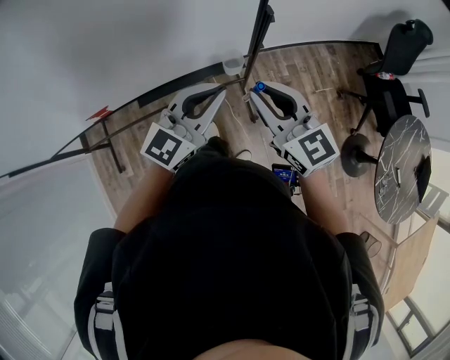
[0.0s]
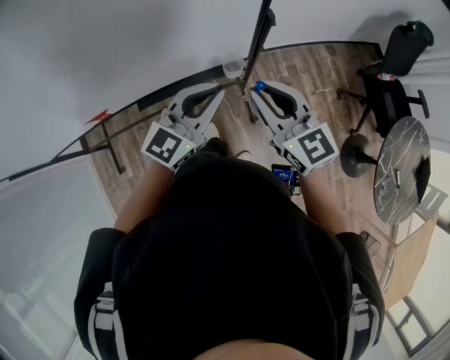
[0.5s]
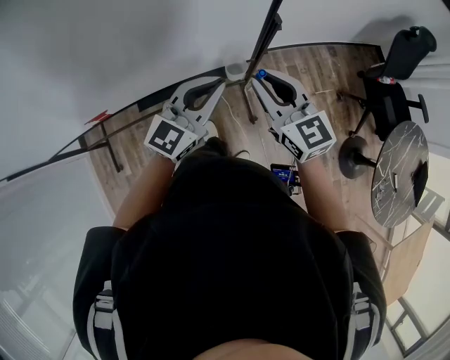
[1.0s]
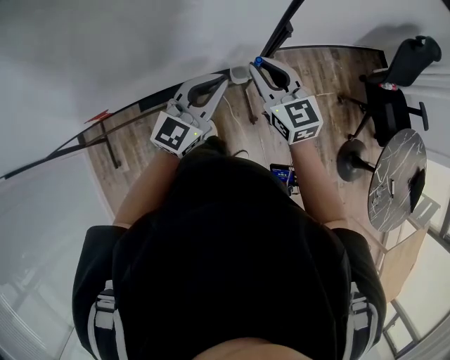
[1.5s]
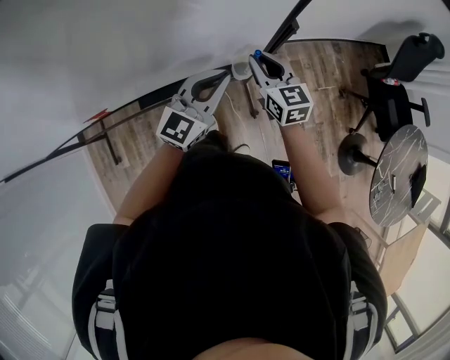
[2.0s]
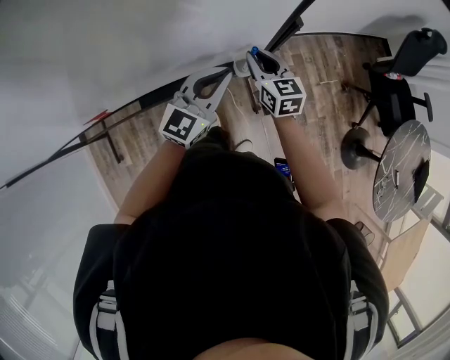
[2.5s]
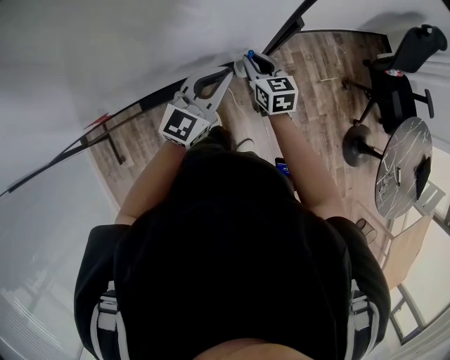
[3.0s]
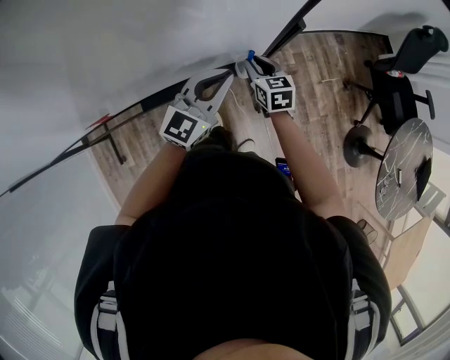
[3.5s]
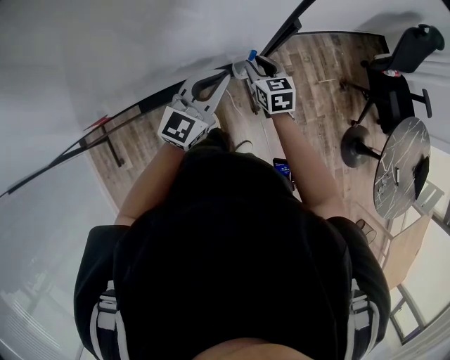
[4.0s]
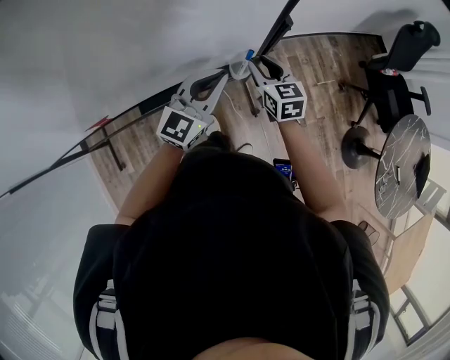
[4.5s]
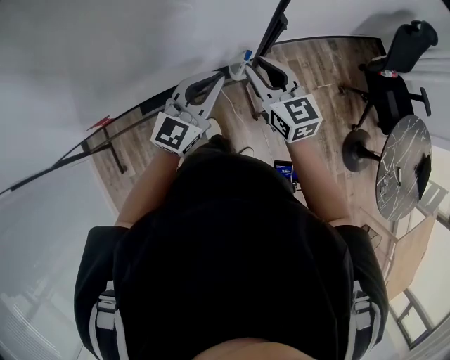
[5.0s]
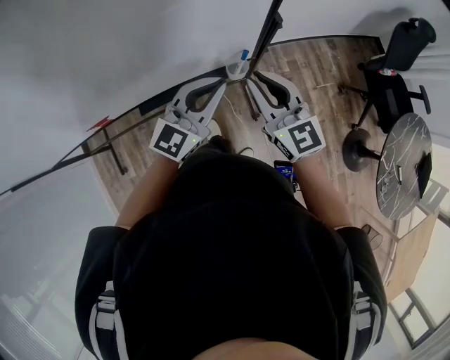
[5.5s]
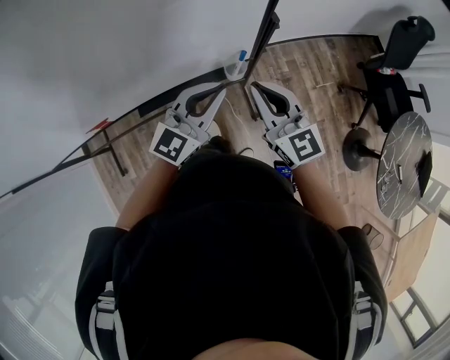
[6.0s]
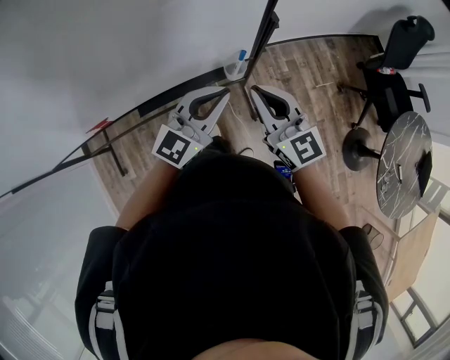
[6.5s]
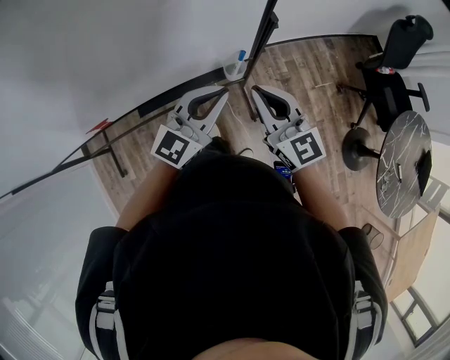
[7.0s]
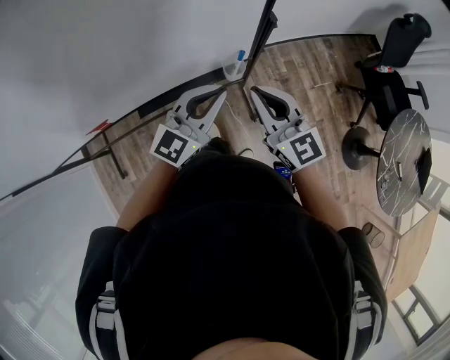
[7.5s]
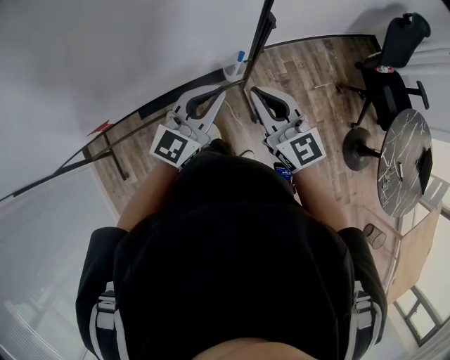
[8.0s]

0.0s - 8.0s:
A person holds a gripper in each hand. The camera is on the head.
0.0s - 2.0s: The right gripper moves forward and downward, approximately 20 cm. The left gripper goes about 10 cm forward and downward.
2.0s - 4.0s: The right gripper travels downward by some 10 cm.
4.0s - 6.0s: The right gripper goes about 25 cm upward and backward, swivels some 30 degrees, and closes its fingers, while the left gripper goes roughly 10 cm upward and backward.
6.0s - 8.0s: There are only small adjustments of the grippers.

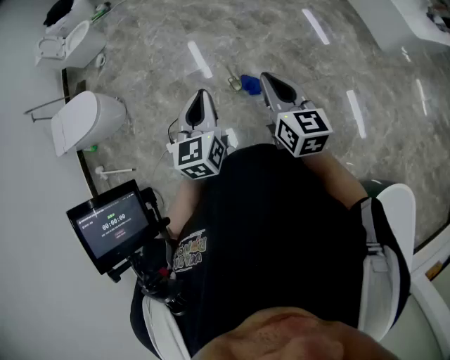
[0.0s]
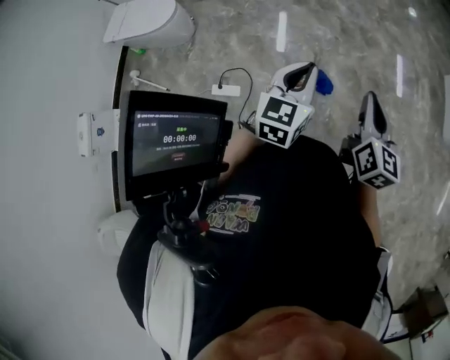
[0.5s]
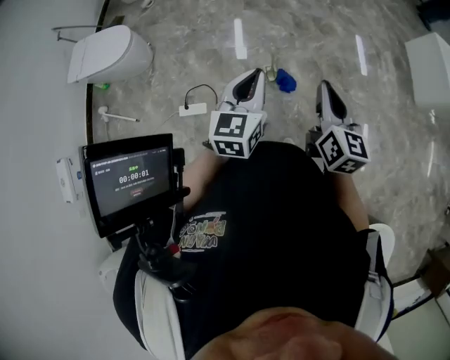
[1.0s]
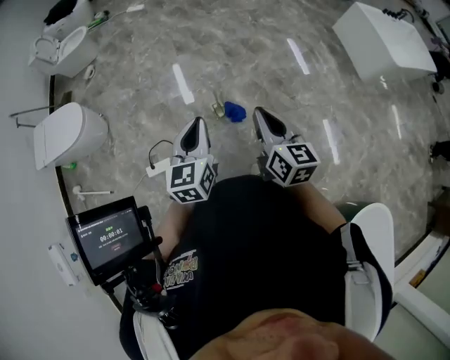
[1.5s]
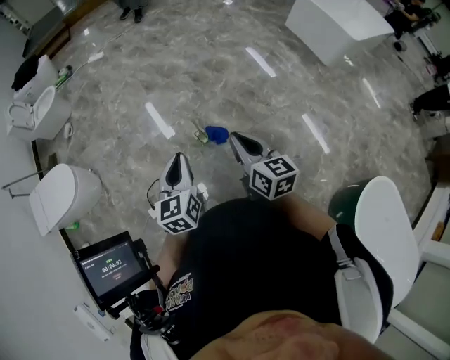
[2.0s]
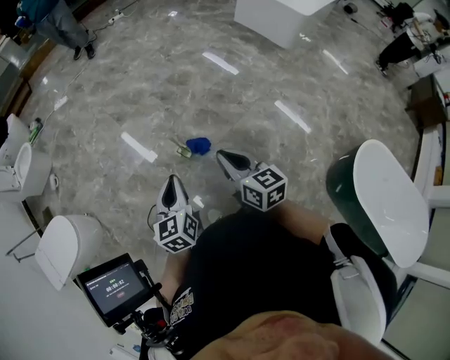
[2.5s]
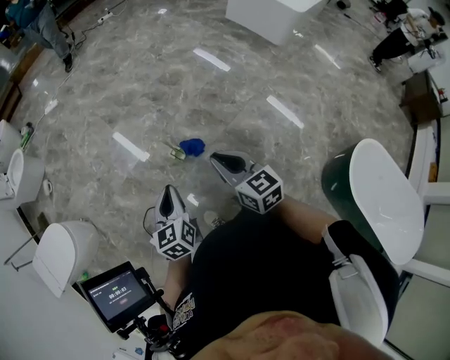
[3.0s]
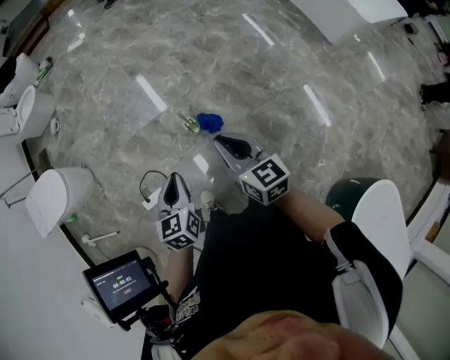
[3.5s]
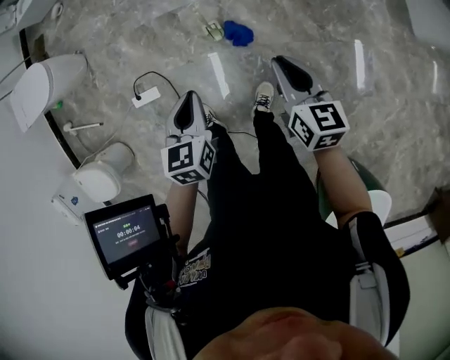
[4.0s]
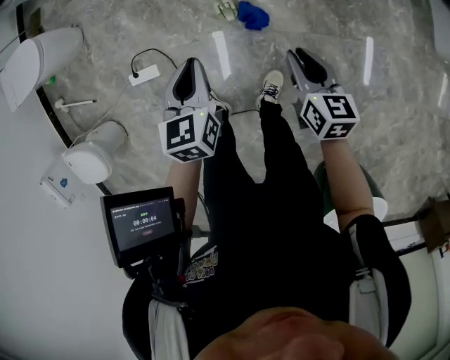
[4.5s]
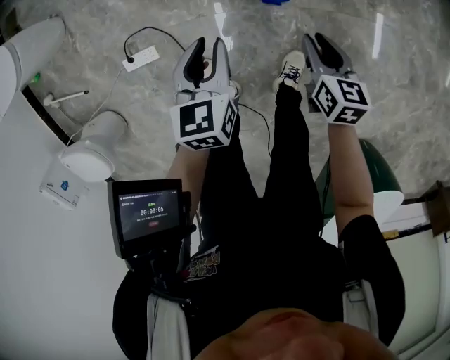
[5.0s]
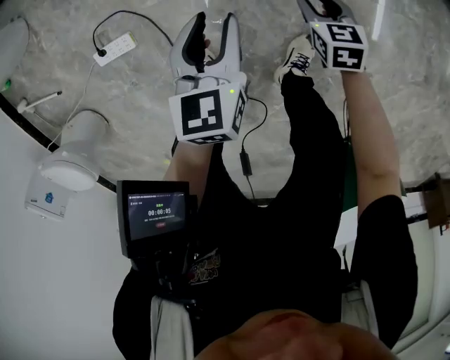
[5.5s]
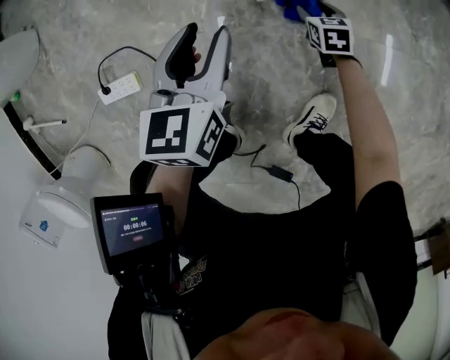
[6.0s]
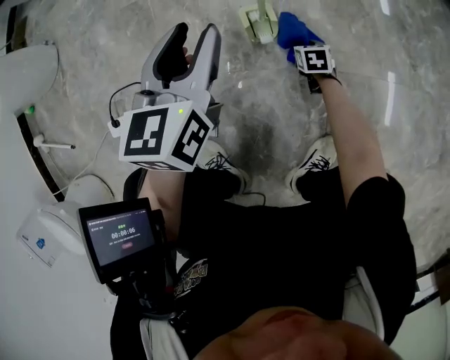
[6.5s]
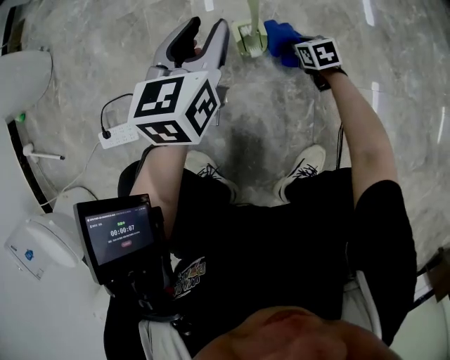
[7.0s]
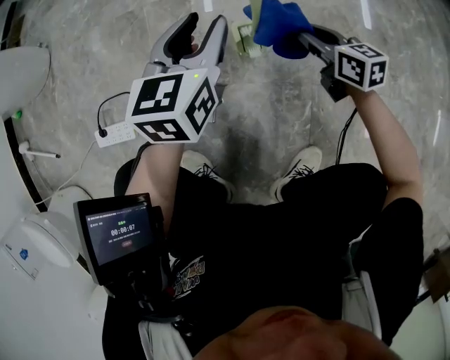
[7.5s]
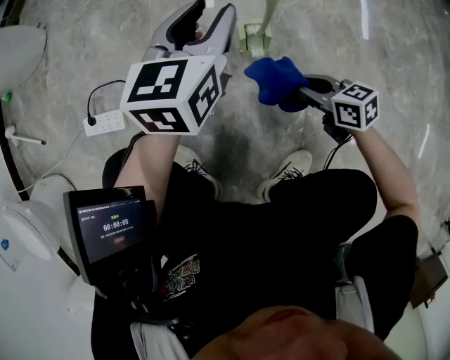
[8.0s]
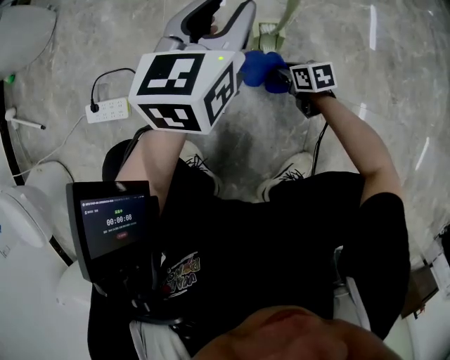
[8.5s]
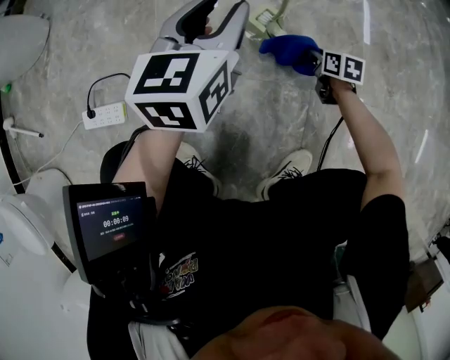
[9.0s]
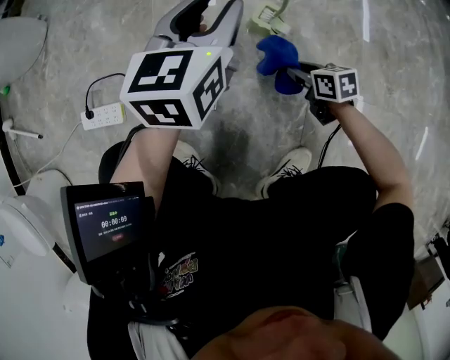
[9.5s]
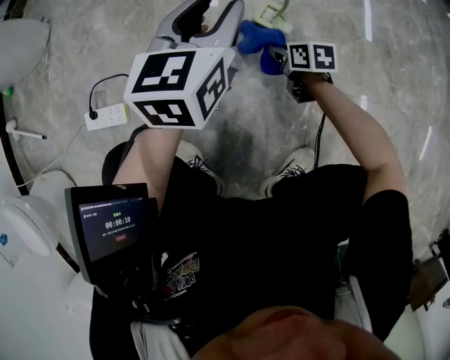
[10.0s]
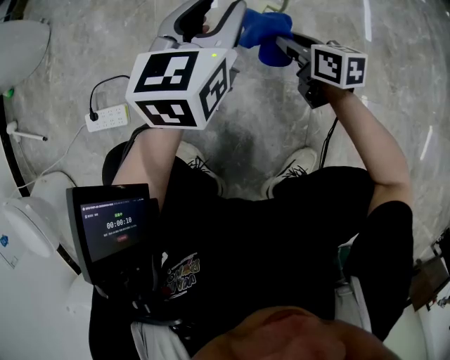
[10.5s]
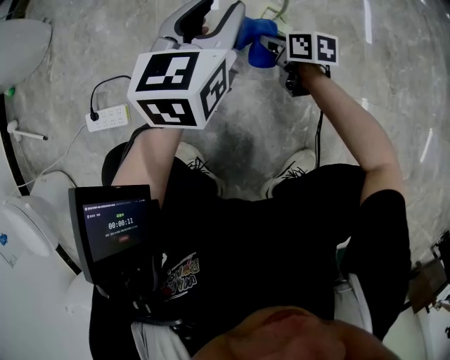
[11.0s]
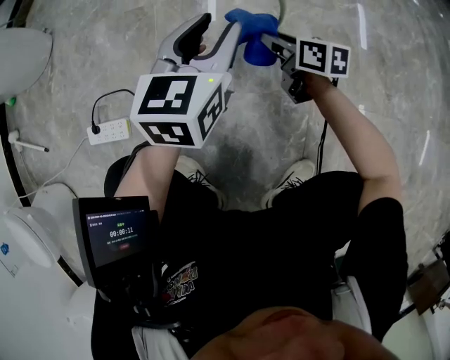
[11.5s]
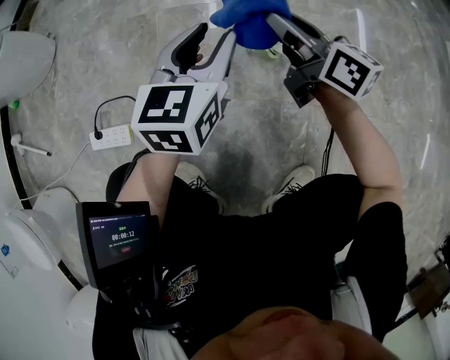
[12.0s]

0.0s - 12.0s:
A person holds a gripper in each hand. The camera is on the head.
0.0s - 2.0s: The left gripper ends up approximately 5 cm from where it was.
2.0s - 4.0s: The left gripper turns by about 20 degrees, while the right gripper shifts by roughly 5 cm, and changes its angle by roughly 20 degrees.
4.0s - 6.0s: The left gripper heads downward, covering roughly 50 cm, and opens. The right gripper goes roughly 80 cm downward, swivels about 30 degrees, and opens.
6.0s - 8.0s: The right gripper heads upward, covering about 15 cm, swivels some 40 degrees, and closes up. The left gripper moves roughly 10 cm.
8.0s - 10.0s: The right gripper heads downward and forward, covering some 15 cm, and turns by roughly 20 degrees.
10.0s - 12.0s: The right gripper moves up and down over some 25 cm, changing direction 2 times, and angles its fingers upward, by about 40 degrees.

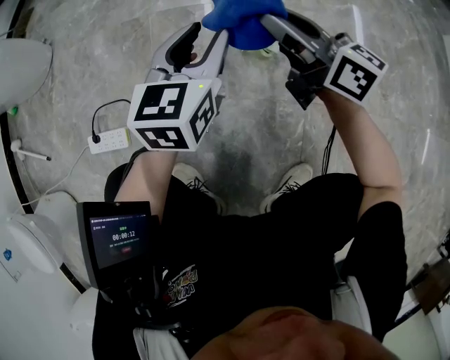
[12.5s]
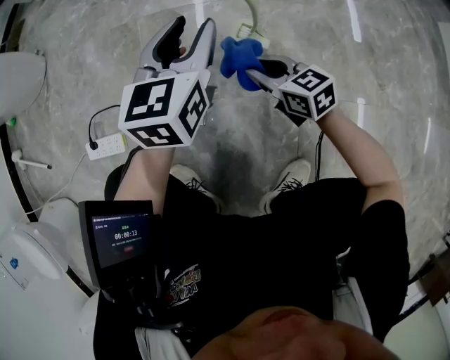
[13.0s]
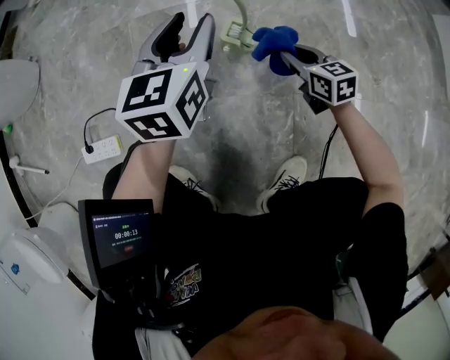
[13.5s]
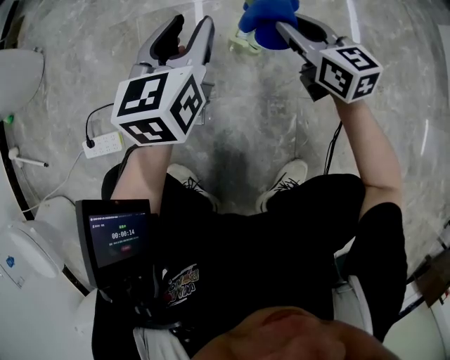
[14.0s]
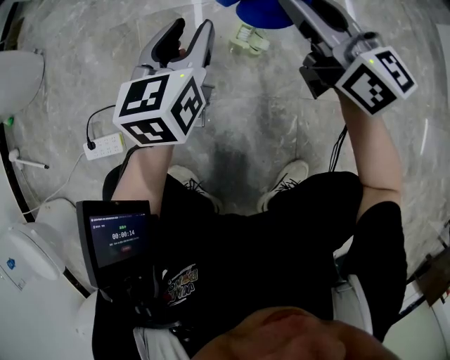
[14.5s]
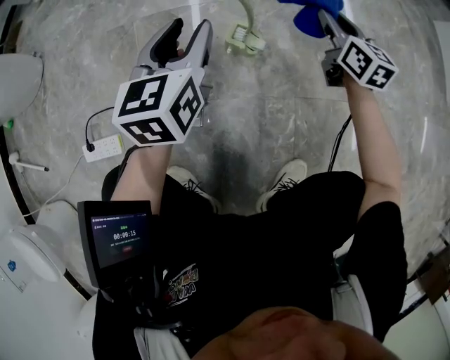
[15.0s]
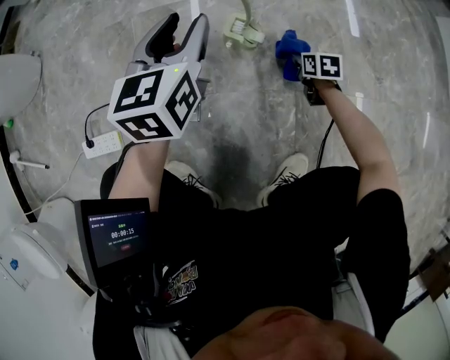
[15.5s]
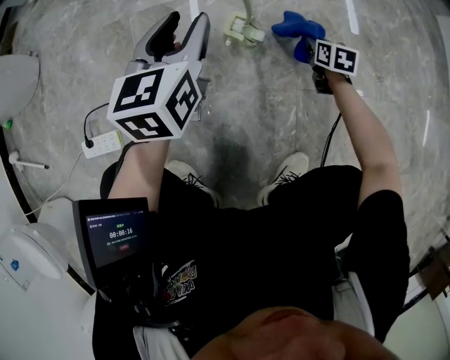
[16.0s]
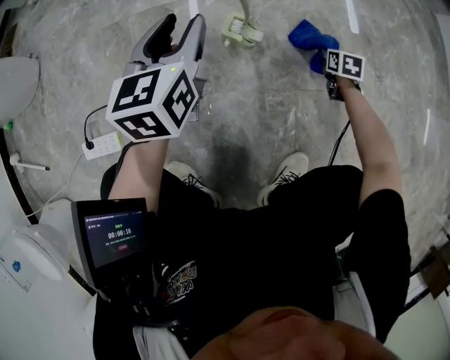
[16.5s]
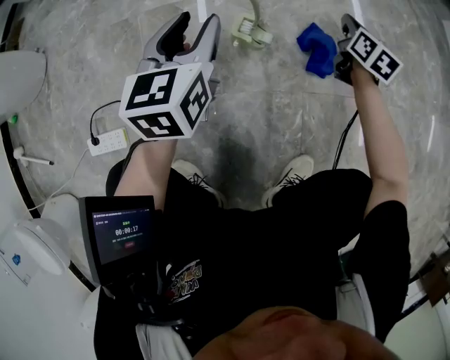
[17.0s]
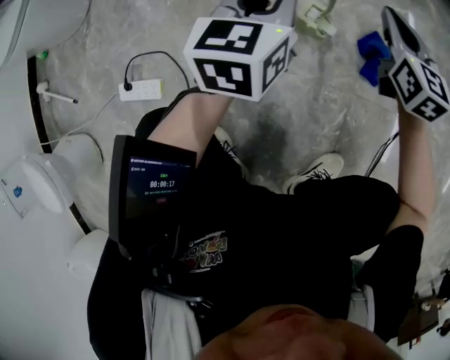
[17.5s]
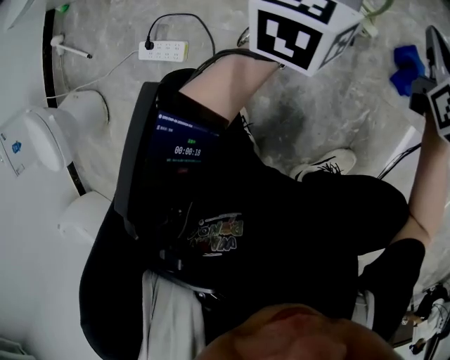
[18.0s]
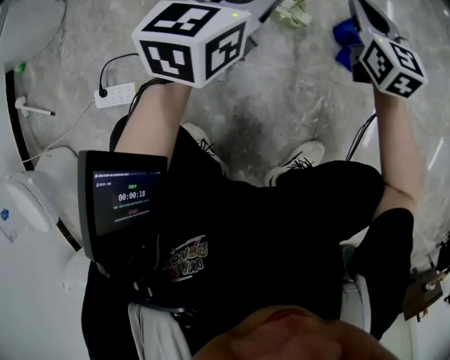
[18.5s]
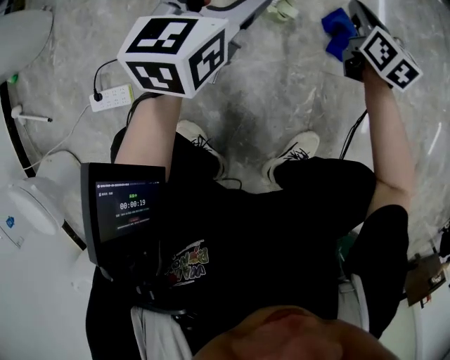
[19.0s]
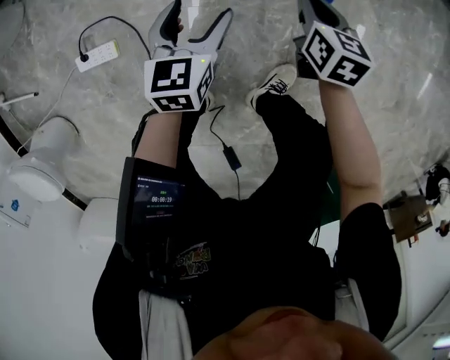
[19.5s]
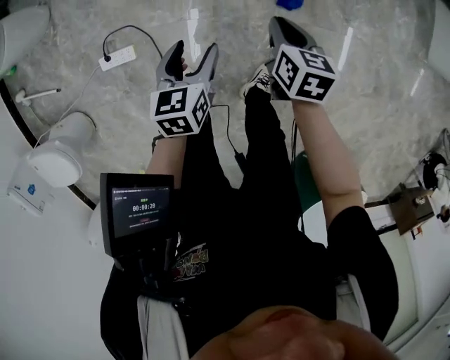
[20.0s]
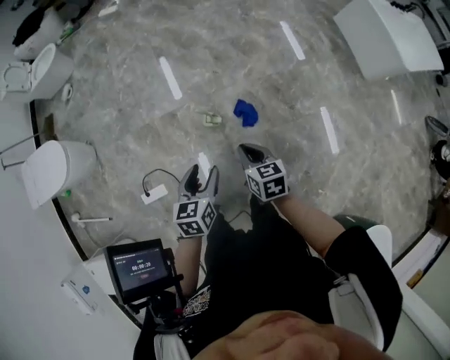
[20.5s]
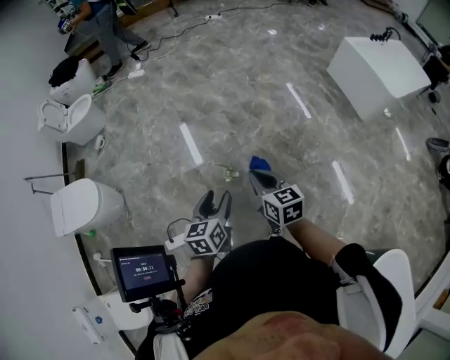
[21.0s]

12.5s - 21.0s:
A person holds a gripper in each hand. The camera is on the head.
12.5s - 14.5s: The right gripper travels downward and back again, about 20 cm each way, and rotates roughly 20 degrees.
14.5s - 16.5s: The right gripper is displaced downward and to the right by roughly 50 cm, and tilts its fingers some 60 degrees downward.
16.5s - 19.0s: The right gripper is displaced upward and to the left by some 25 cm, and turns by approximately 30 degrees. Meanwhile the left gripper opens its fingers.
19.0s - 21.0s: The grippers both shift upward by some 60 cm. The left gripper closes.
